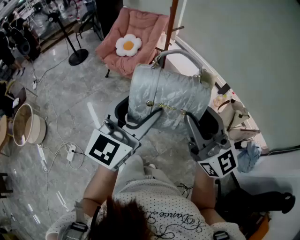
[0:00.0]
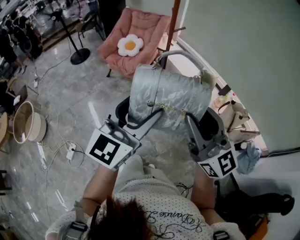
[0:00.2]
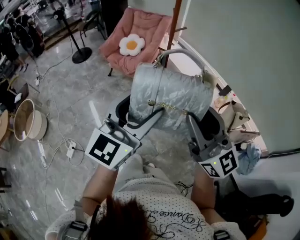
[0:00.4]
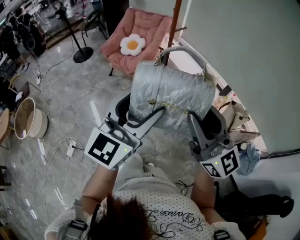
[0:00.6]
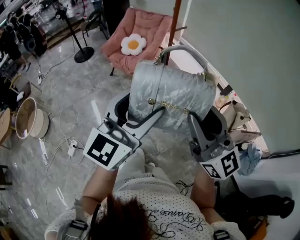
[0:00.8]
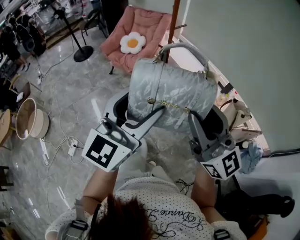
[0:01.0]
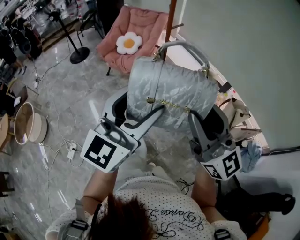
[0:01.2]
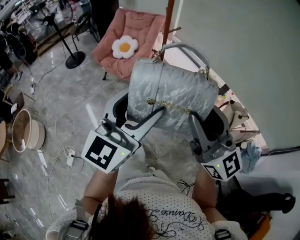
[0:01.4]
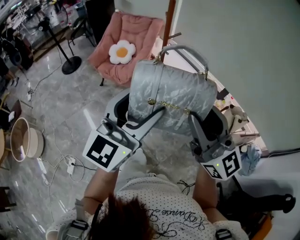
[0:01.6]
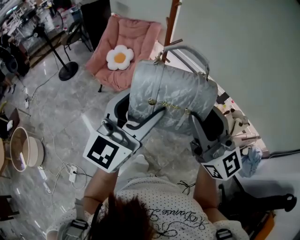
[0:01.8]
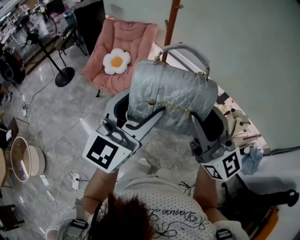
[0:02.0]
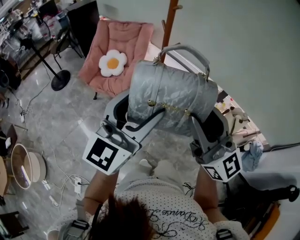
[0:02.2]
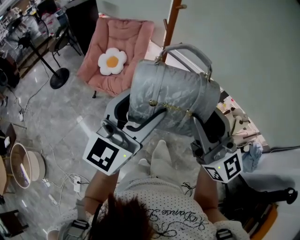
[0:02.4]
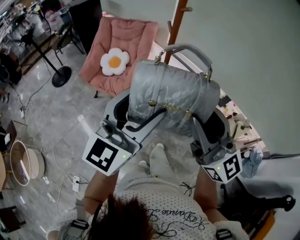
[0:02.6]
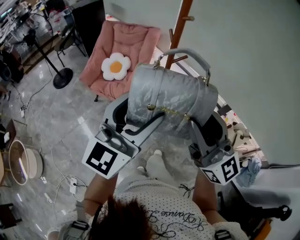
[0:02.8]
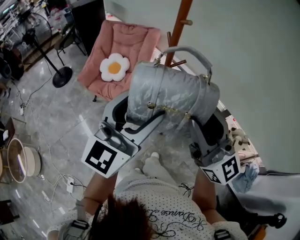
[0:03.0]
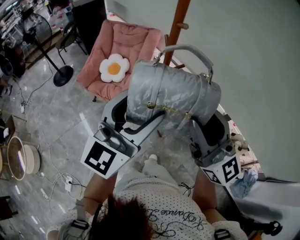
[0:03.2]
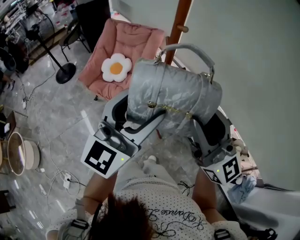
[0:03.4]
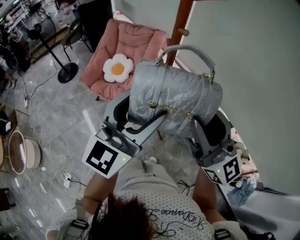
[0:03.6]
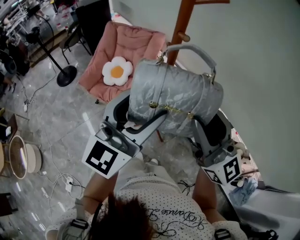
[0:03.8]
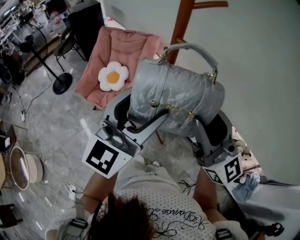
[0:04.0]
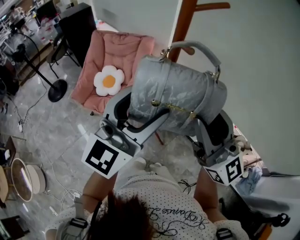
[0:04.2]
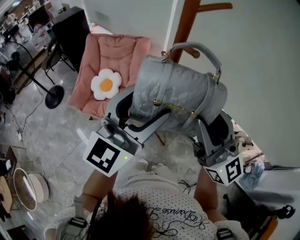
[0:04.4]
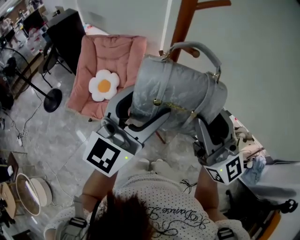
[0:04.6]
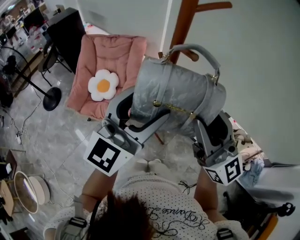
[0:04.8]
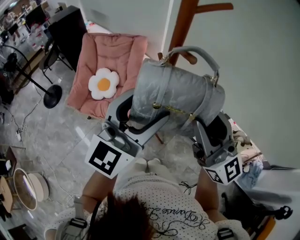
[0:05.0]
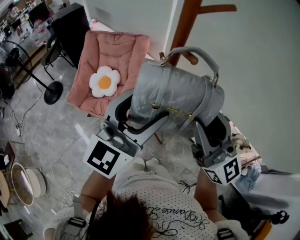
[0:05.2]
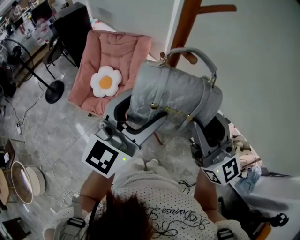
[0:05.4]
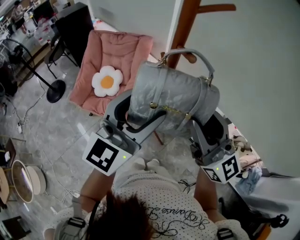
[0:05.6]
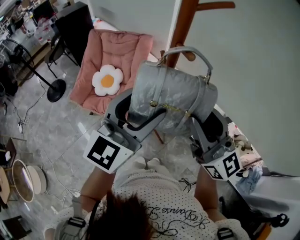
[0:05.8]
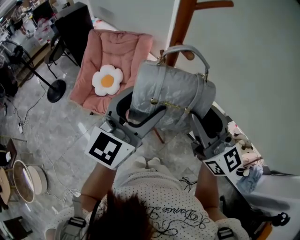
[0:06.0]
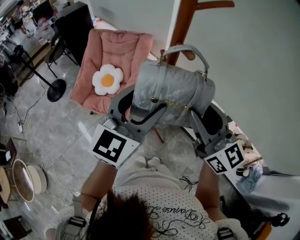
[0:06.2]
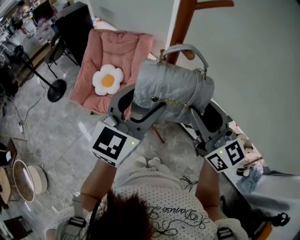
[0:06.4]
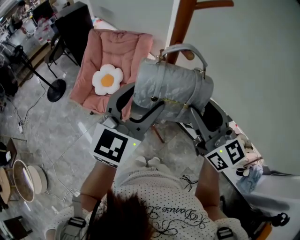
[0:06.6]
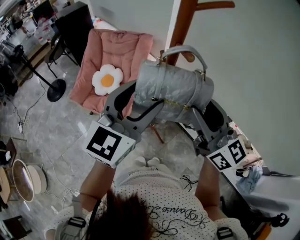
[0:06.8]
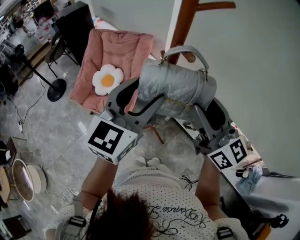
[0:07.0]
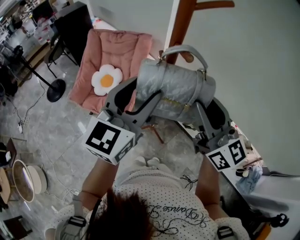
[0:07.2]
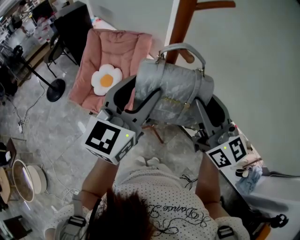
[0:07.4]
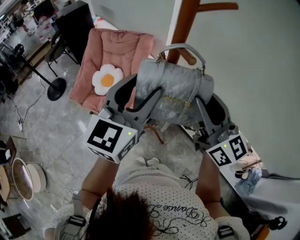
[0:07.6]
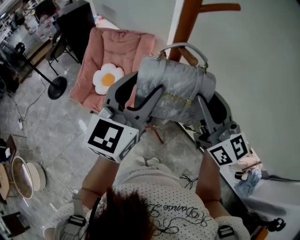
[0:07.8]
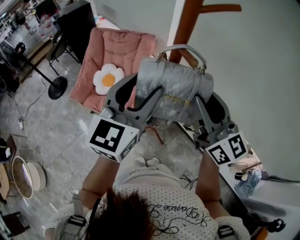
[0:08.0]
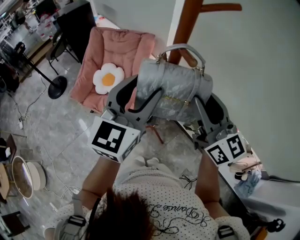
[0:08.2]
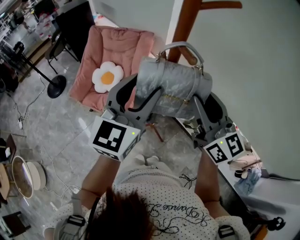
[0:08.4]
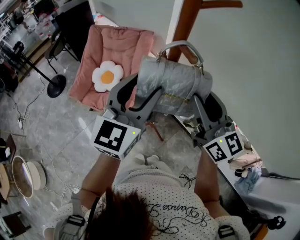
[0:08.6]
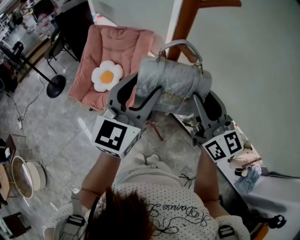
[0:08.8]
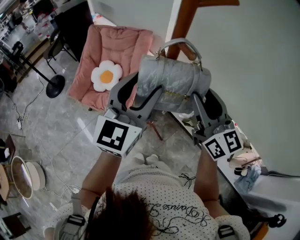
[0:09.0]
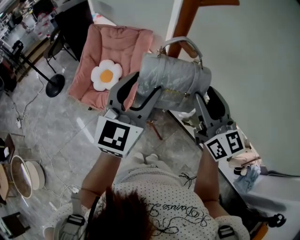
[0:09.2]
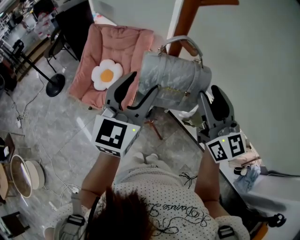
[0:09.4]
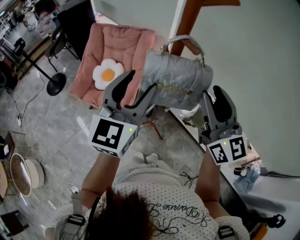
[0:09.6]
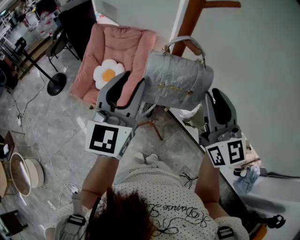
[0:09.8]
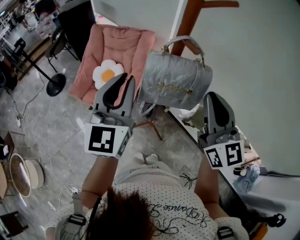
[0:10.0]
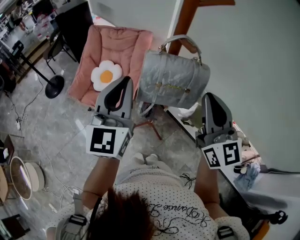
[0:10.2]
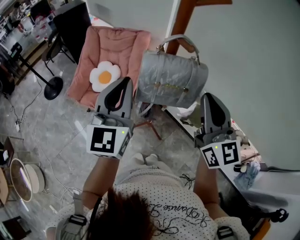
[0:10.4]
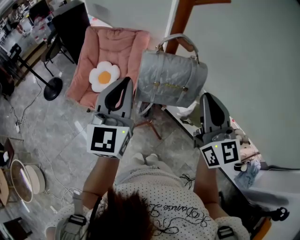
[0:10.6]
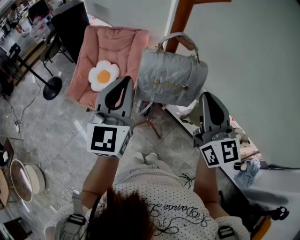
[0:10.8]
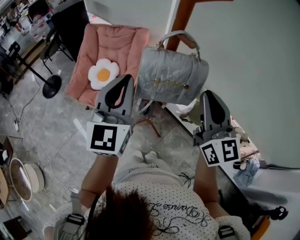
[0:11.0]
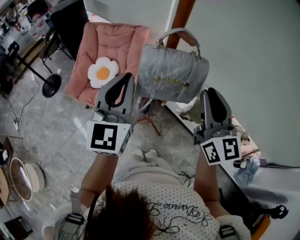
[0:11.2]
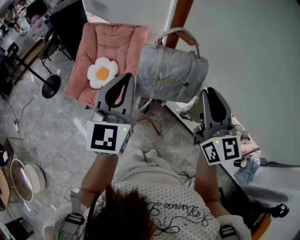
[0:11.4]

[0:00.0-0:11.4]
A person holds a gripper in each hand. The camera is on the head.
0:00.0 to 0:01.4: The grippers stay close to where they were, moving slightly.
0:01.4 to 0:02.8: The grippers both shift forward by approximately 30 cm.
0:02.8 to 0:04.2: Both grippers travel together forward, approximately 15 cm.
0:04.2 to 0:05.6: There are only small adjustments of the grippers.
0:05.6 to 0:07.2: The grippers move only a little.
0:07.2 to 0:08.6: There are only small adjustments of the grippers.
0:08.6 to 0:10.0: The right gripper ends up roughly 5 cm from where it was, and closes up. The left gripper shifts some 5 cm to the left, and closes up.
0:10.0 to 0:11.4: The grippers move only a little.

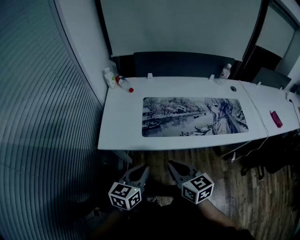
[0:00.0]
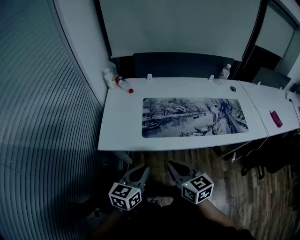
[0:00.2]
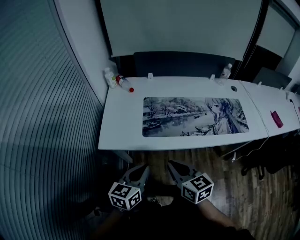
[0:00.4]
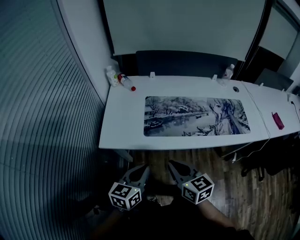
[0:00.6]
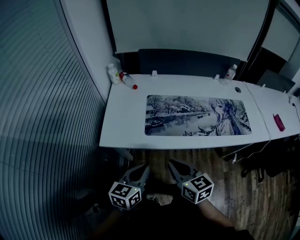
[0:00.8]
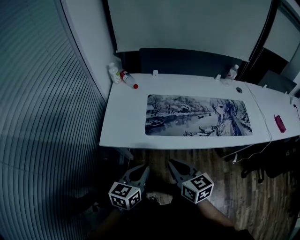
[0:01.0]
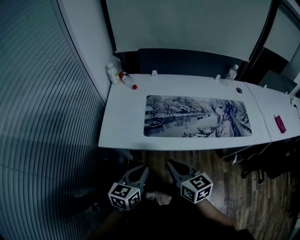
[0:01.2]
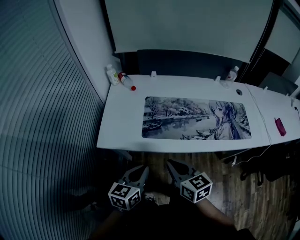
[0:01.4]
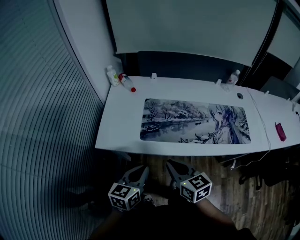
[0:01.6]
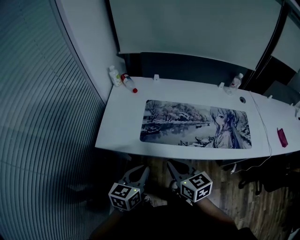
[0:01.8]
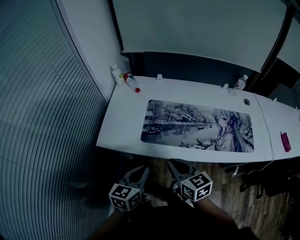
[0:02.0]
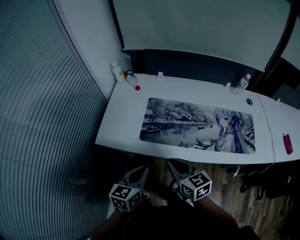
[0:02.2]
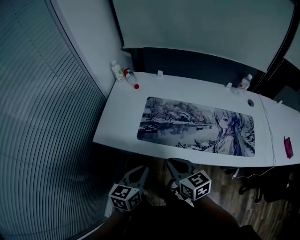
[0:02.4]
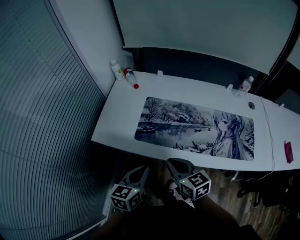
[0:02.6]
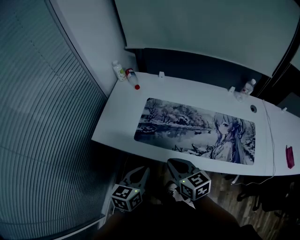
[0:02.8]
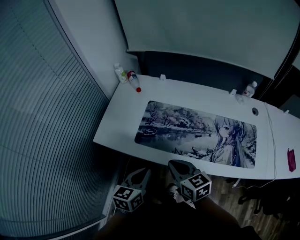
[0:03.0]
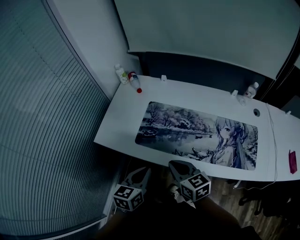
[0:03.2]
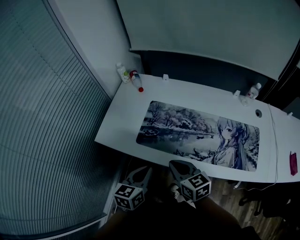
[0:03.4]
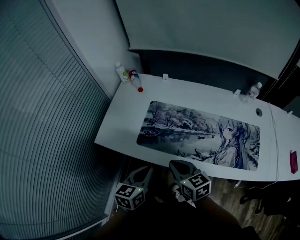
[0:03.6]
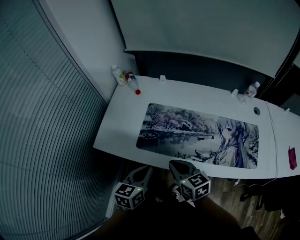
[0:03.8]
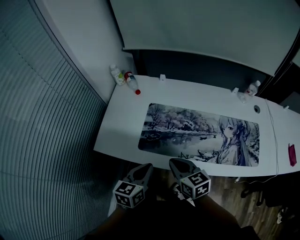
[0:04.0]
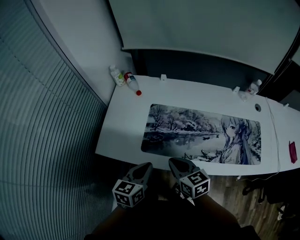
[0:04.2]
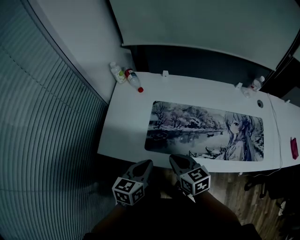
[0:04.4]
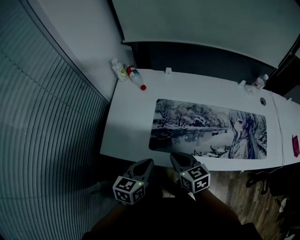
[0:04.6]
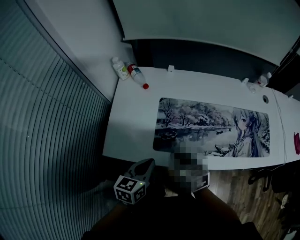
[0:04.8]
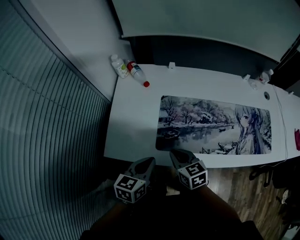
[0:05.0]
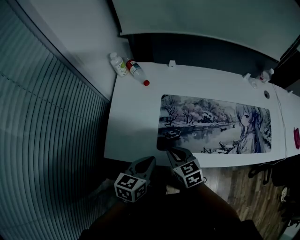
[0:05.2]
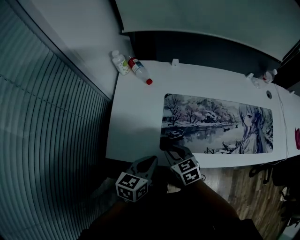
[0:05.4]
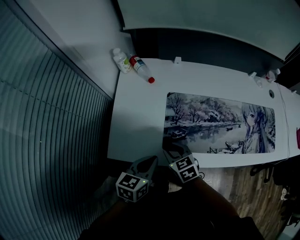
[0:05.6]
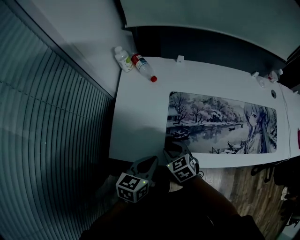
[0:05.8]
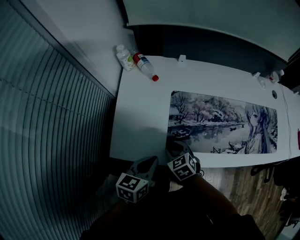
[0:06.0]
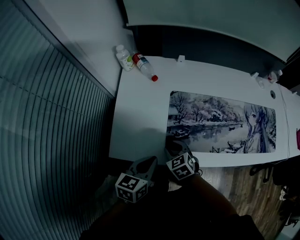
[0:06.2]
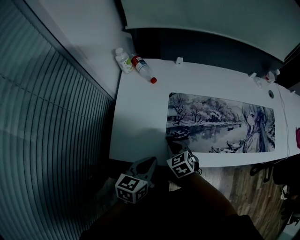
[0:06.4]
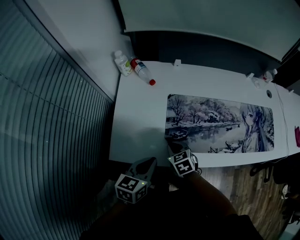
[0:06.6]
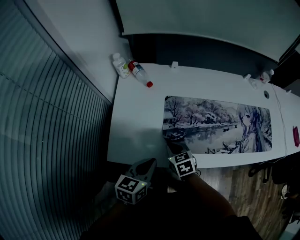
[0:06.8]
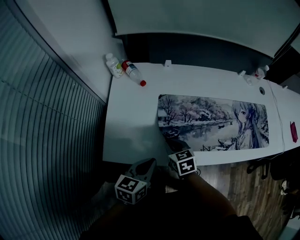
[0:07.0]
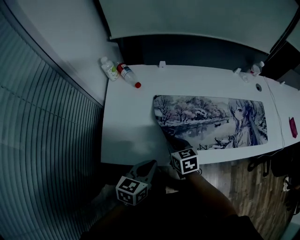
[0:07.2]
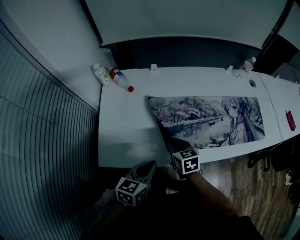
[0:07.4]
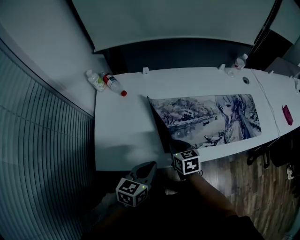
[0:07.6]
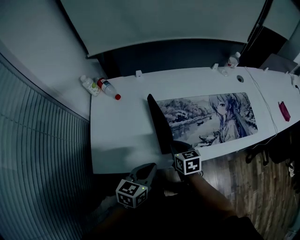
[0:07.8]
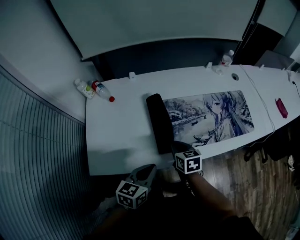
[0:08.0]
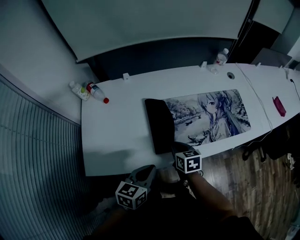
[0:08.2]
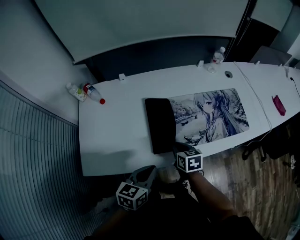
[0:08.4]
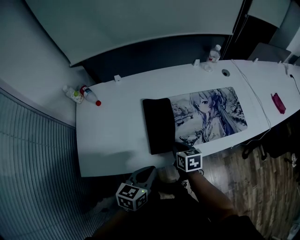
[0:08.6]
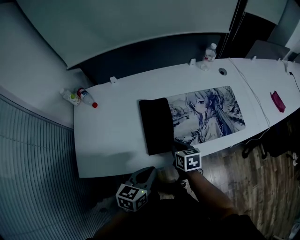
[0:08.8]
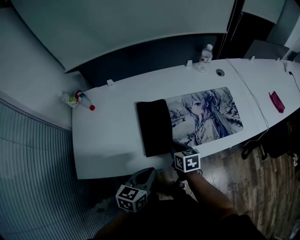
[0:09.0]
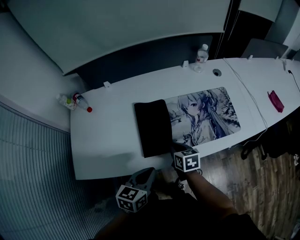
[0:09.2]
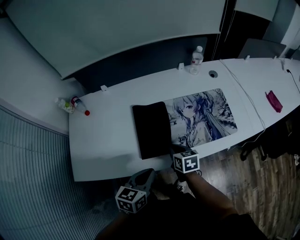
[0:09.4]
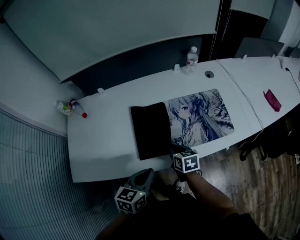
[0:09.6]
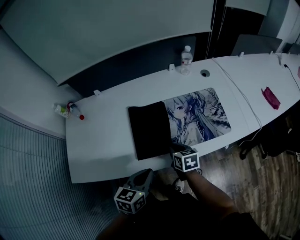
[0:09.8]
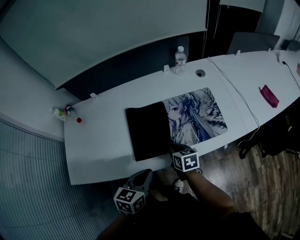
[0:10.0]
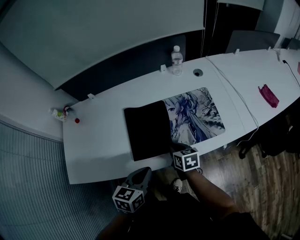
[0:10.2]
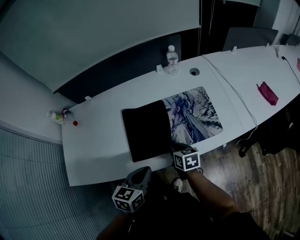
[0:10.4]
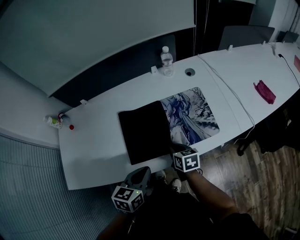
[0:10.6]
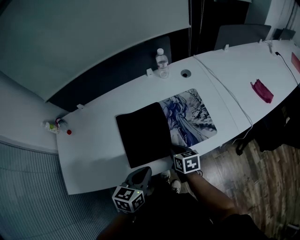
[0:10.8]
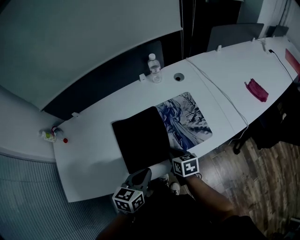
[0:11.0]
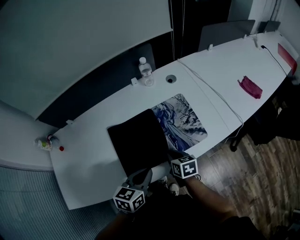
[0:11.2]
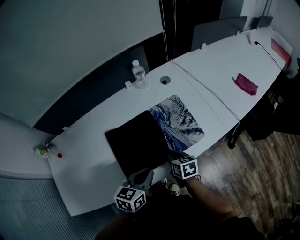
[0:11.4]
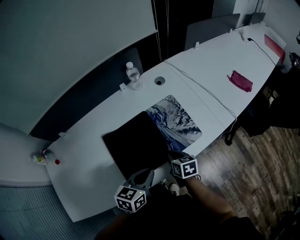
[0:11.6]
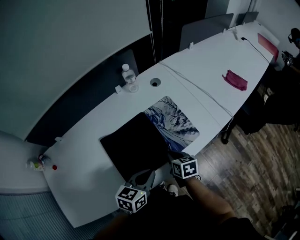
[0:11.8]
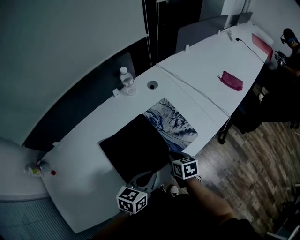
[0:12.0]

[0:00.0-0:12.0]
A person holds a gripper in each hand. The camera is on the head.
0:00.0 to 0:01.6: The right gripper ends up approximately 5 cm from where it was.
0:01.6 to 0:03.0: Both grippers move to the right, approximately 10 cm.
0:03.0 to 0:04.4: The grippers both shift forward and to the left by about 10 cm.
0:04.4 to 0:06.0: The left gripper shifts about 10 cm to the left and downward. The right gripper travels downward and to the left by about 20 cm, rotates some 30 degrees, and opens.
0:06.0 to 0:07.6: The right gripper heads to the right and upward, covering approximately 15 cm, rotates some 40 degrees, and closes. Meanwhile the left gripper is displaced to the right by some 10 cm.
0:07.6 to 0:09.0: Both grippers move to the right, some 20 cm.
0:09.0 to 0:10.4: Both grippers travel together to the right, roughly 15 cm.
0:10.4 to 0:12.0: The left gripper moves about 15 cm, and changes its angle by approximately 30 degrees. Meanwhile the right gripper shifts by some 10 cm, and changes its angle by roughly 20 degrees.
